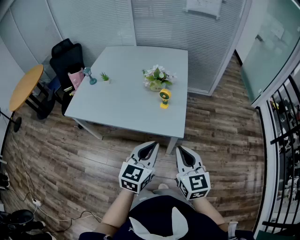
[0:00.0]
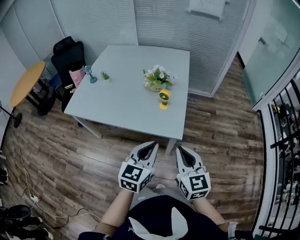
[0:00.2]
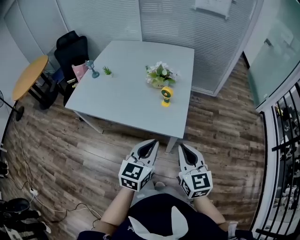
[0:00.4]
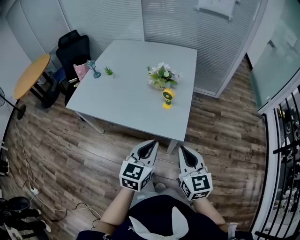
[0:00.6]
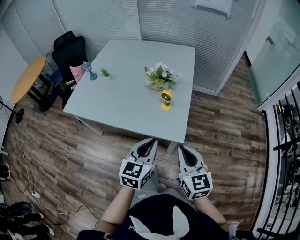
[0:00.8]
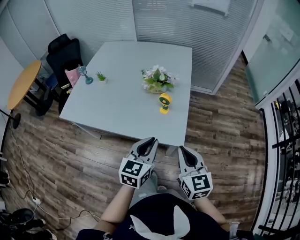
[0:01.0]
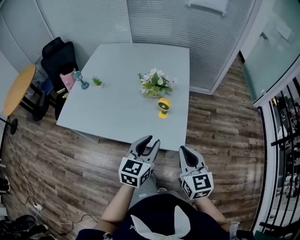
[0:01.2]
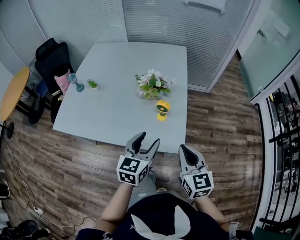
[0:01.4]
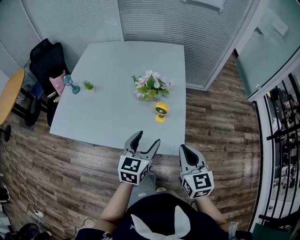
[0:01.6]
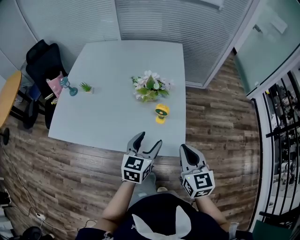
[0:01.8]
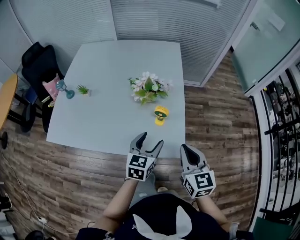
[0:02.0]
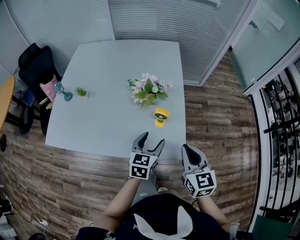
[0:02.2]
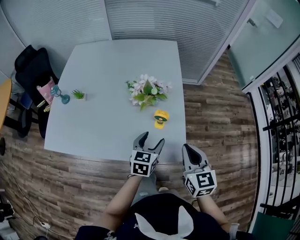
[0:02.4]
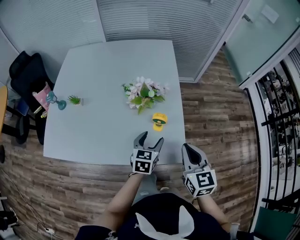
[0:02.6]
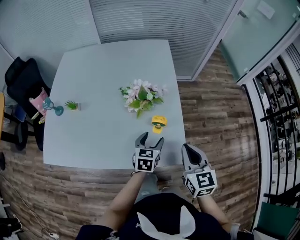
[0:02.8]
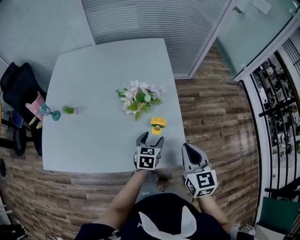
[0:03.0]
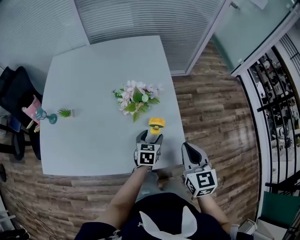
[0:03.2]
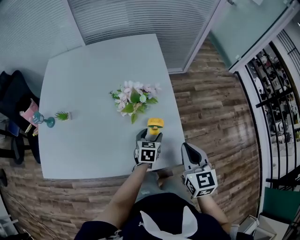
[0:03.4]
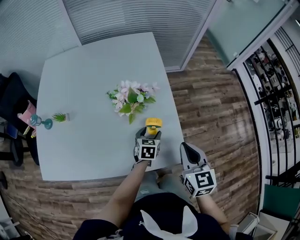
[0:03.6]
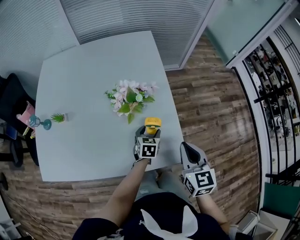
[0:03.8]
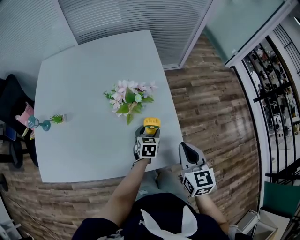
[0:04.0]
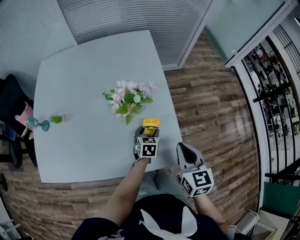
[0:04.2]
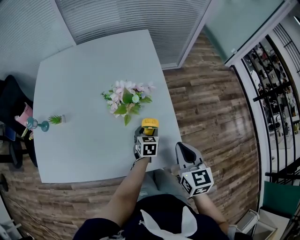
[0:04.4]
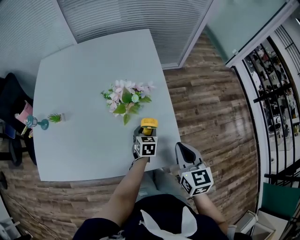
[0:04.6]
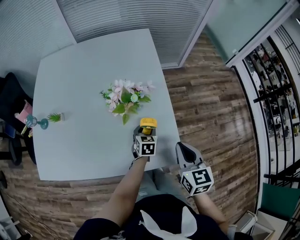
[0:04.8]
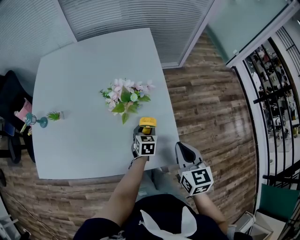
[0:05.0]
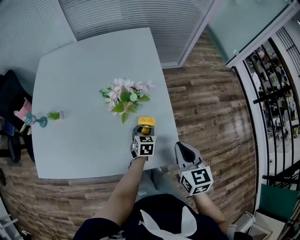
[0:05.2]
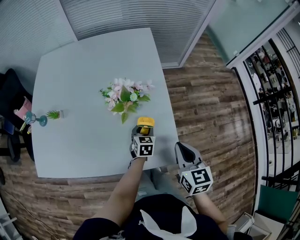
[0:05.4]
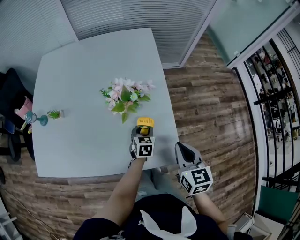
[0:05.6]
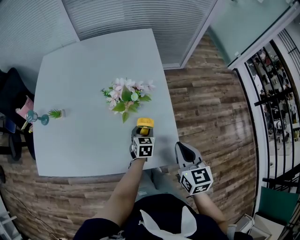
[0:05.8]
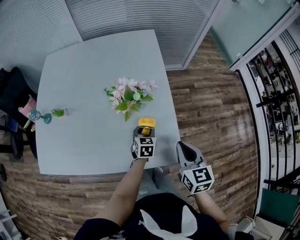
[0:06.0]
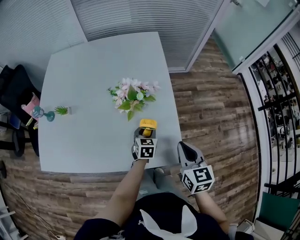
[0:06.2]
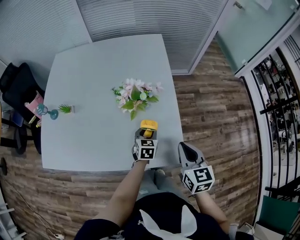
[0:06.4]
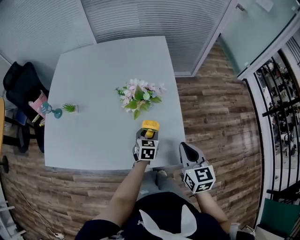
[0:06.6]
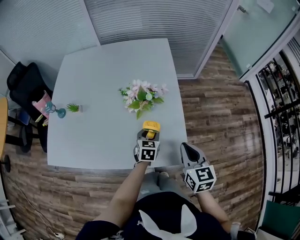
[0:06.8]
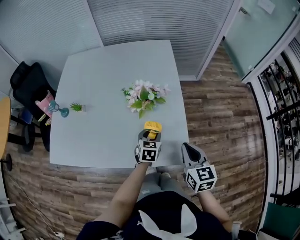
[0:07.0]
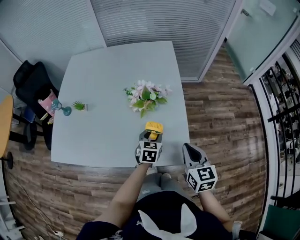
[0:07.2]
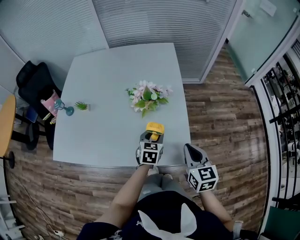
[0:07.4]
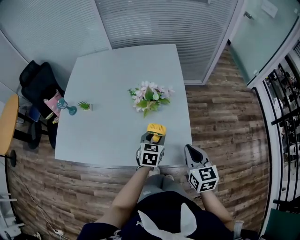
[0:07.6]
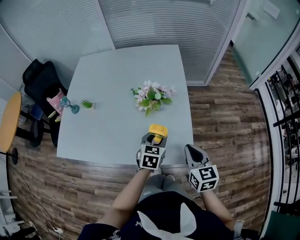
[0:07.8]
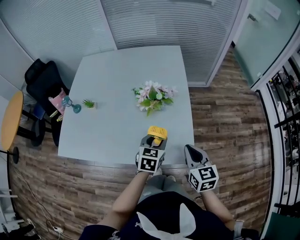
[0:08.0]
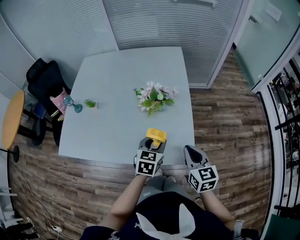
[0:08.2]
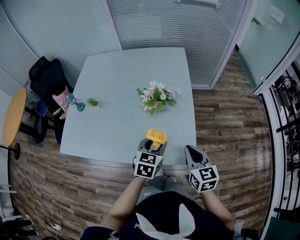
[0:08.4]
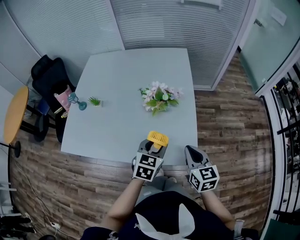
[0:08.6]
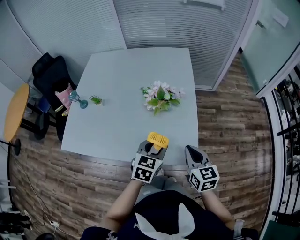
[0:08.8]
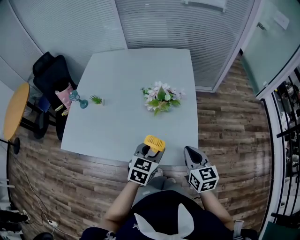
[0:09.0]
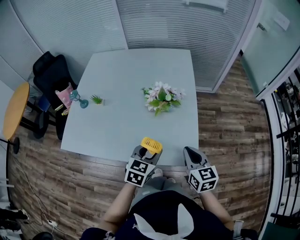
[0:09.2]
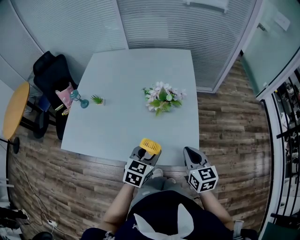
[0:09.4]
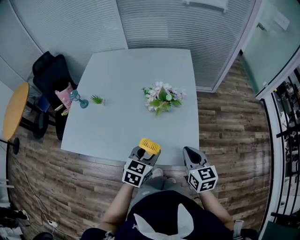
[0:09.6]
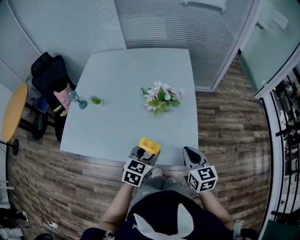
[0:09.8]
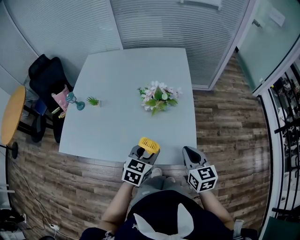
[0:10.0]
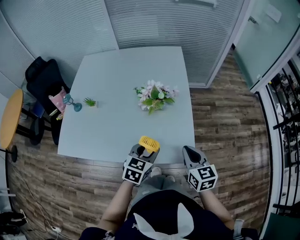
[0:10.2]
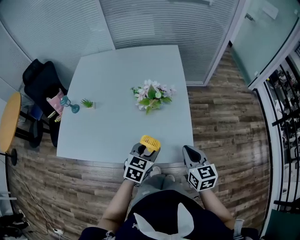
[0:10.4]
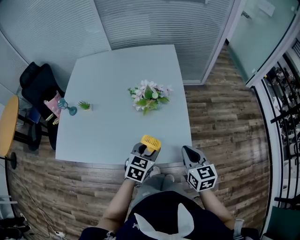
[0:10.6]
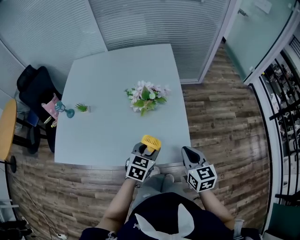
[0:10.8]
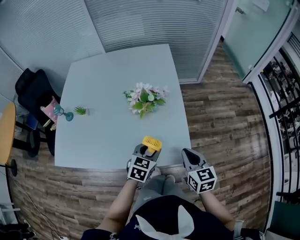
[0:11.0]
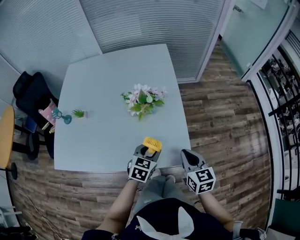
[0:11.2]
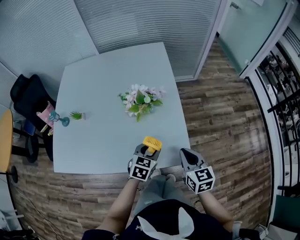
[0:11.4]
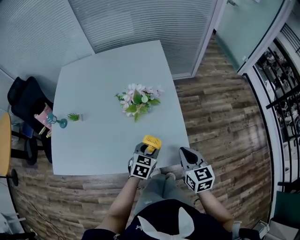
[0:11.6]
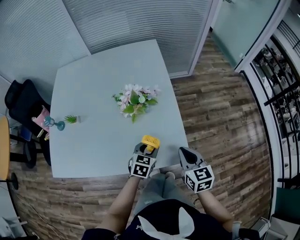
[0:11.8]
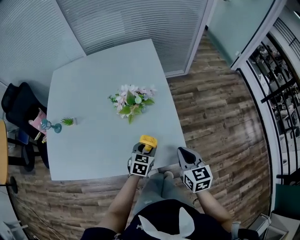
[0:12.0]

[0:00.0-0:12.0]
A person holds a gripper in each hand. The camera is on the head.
0:00.0 to 0:01.6: The two grippers go some 15 cm forward. The left gripper opens.
0:01.6 to 0:03.0: The left gripper goes roughly 20 cm downward and forward, and swivels about 20 degrees, while the right gripper goes about 10 cm forward.
0:03.0 to 0:04.4: The left gripper travels downward and forward by approximately 10 cm.
0:04.4 to 0:06.0: The grippers stay close to where they were, moving slightly.
0:06.0 to 0:07.6: The left gripper heads upward and backward, covering some 10 cm.
0:07.6 to 0:09.0: The left gripper goes approximately 10 cm backward and upward.
0:09.0 to 0:10.4: The grippers stay close to where they were, moving slightly.
0:10.4 to 0:12.0: The left gripper is displaced downward and forward by approximately 15 cm.

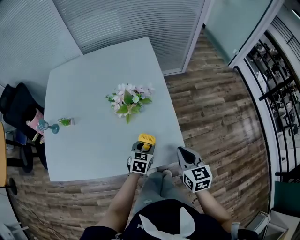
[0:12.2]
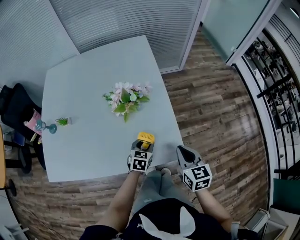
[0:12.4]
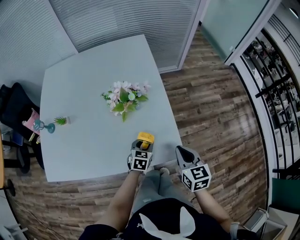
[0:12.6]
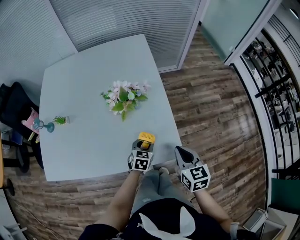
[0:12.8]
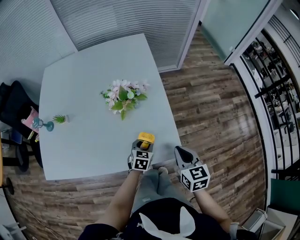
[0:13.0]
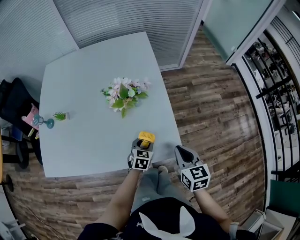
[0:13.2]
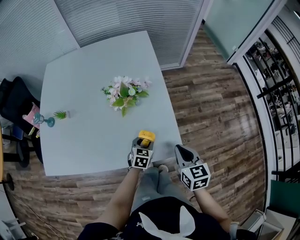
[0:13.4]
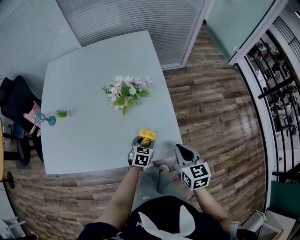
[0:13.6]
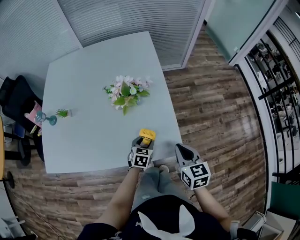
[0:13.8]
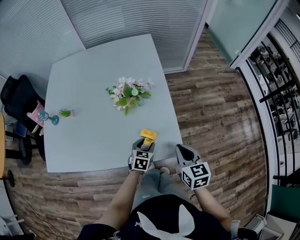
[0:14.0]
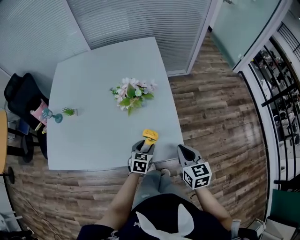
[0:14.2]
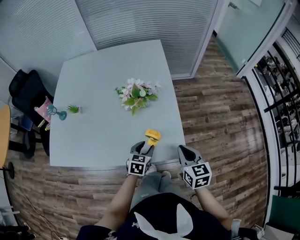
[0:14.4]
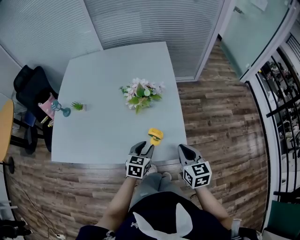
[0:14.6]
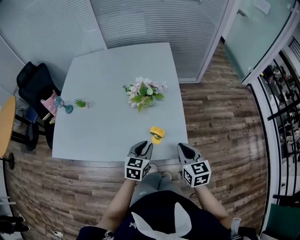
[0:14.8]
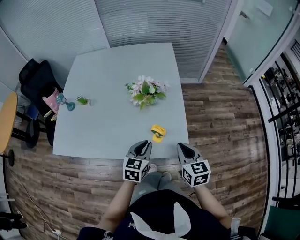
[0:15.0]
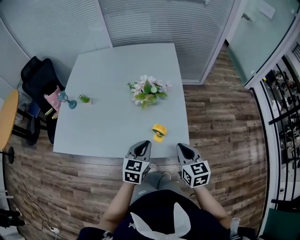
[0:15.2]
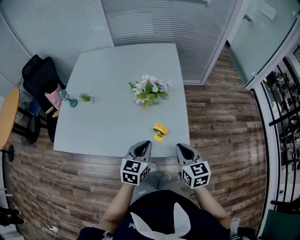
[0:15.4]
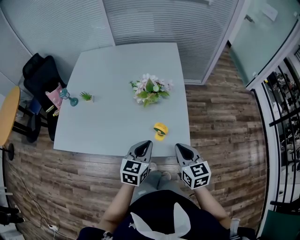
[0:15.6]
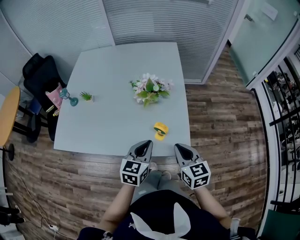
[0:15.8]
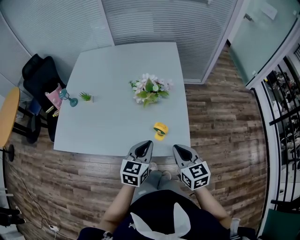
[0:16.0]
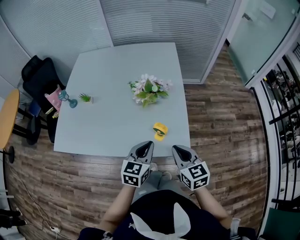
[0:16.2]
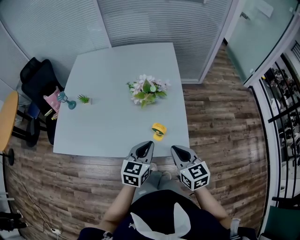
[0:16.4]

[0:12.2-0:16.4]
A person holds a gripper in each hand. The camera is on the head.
0:12.2 to 0:13.6: The grippers stay close to where they were, moving slightly.
0:13.6 to 0:15.0: The left gripper shifts approximately 15 cm upward and backward, and closes.
0:15.0 to 0:16.4: The right gripper moves roughly 5 cm. Meanwhile the left gripper changes place by approximately 5 cm.

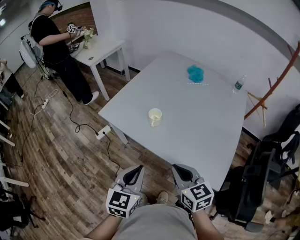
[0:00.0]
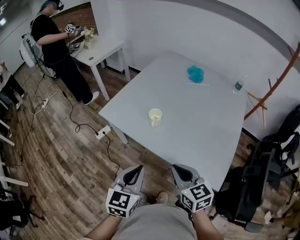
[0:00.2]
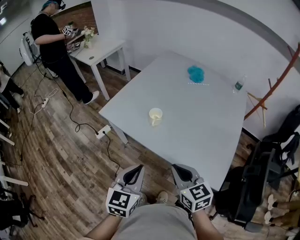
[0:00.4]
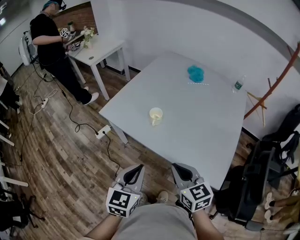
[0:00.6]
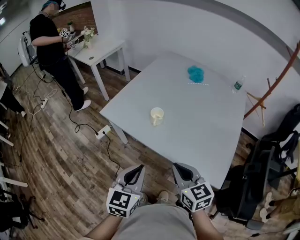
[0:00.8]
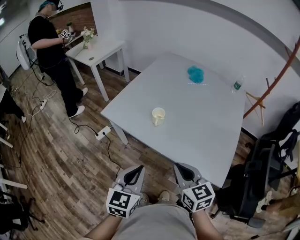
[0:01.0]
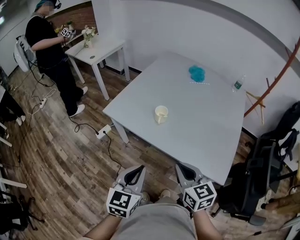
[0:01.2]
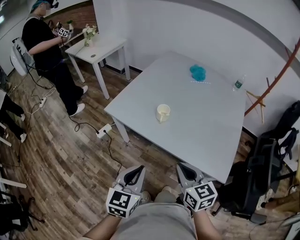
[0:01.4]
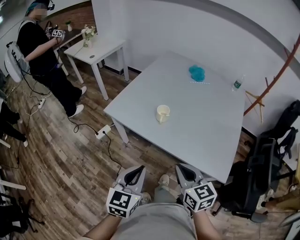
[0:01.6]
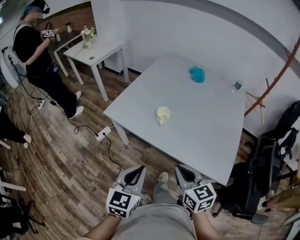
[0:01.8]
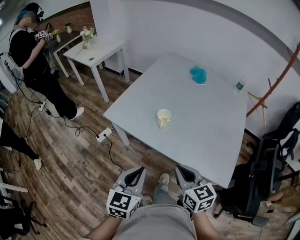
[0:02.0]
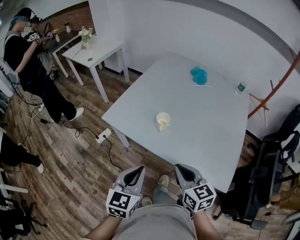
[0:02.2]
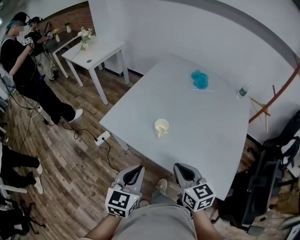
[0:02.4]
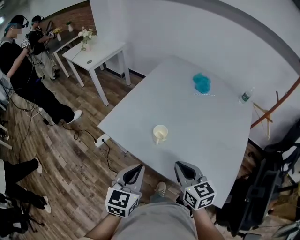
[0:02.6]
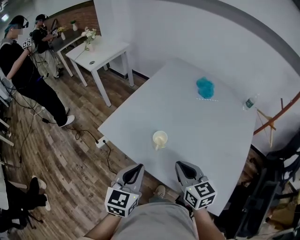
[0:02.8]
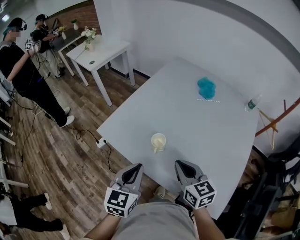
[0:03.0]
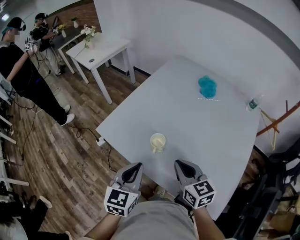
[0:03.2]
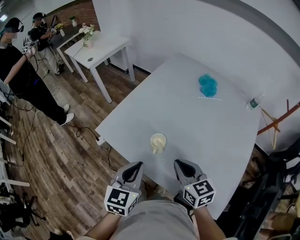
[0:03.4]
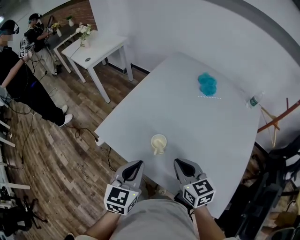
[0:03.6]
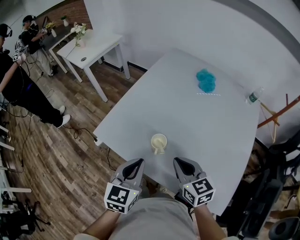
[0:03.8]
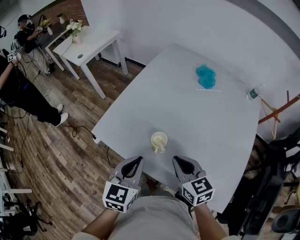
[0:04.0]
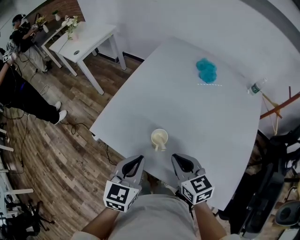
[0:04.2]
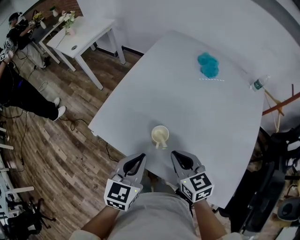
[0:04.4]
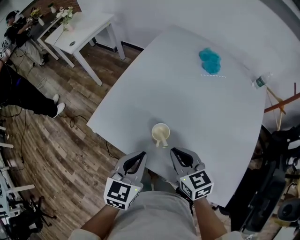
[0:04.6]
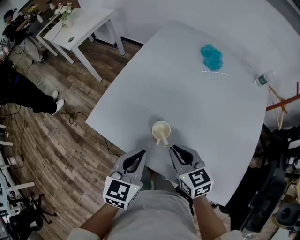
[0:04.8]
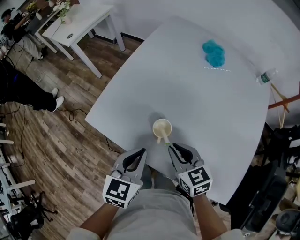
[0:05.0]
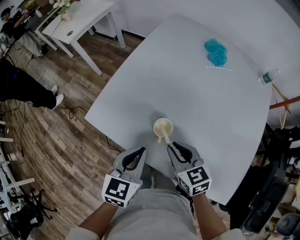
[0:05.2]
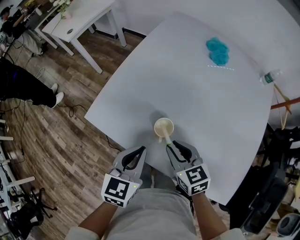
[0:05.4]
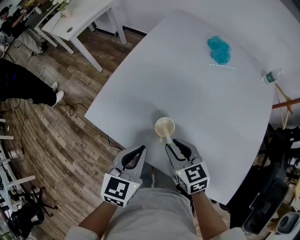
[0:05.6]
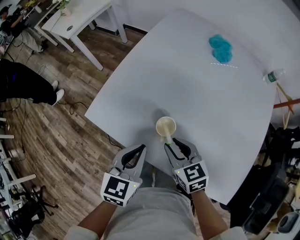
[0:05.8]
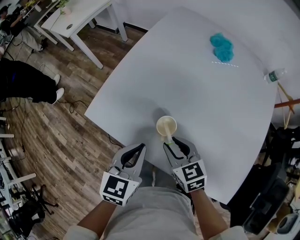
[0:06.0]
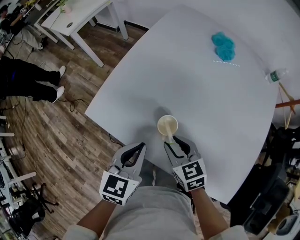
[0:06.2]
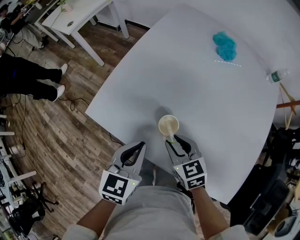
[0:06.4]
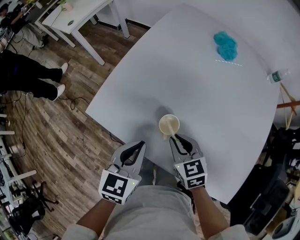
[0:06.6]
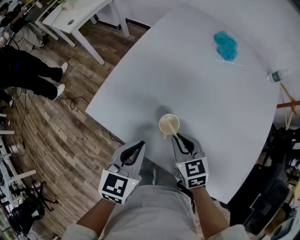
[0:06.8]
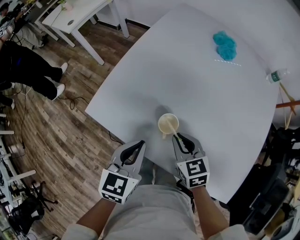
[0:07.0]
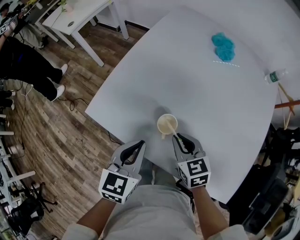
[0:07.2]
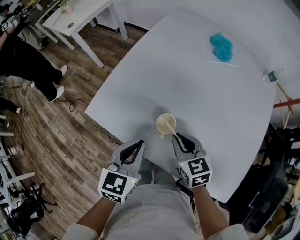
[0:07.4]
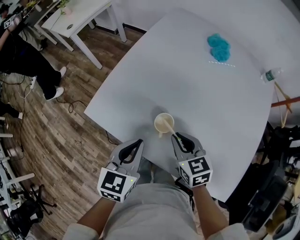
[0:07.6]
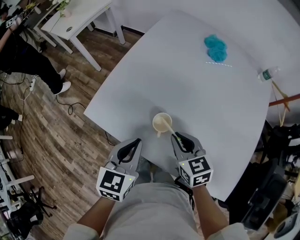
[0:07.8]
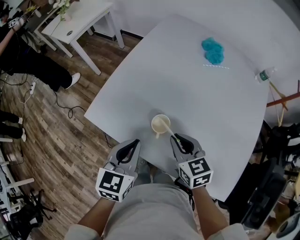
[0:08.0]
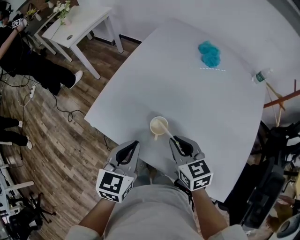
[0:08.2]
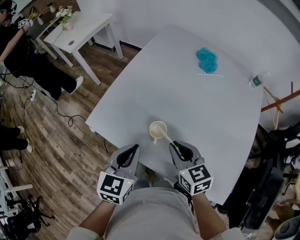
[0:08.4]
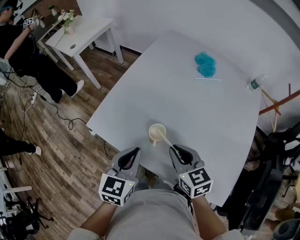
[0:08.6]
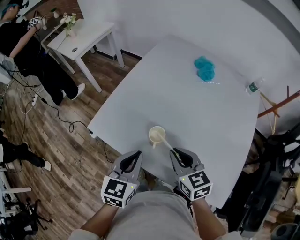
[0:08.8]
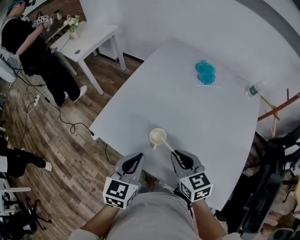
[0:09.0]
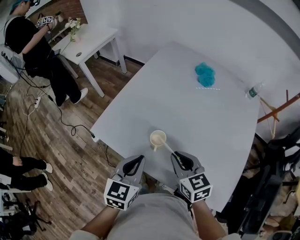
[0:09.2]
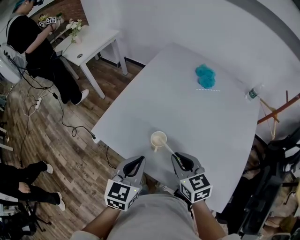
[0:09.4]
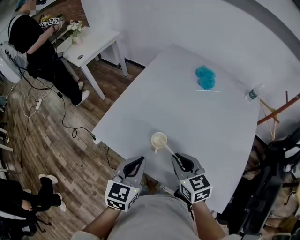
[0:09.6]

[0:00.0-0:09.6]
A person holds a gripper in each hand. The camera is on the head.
0:00.0 to 0:01.6: The two grippers go approximately 5 cm to the left.
0:01.6 to 0:03.2: The grippers both shift forward by approximately 25 cm.
0:03.2 to 0:04.8: The right gripper heads downward and forward, covering some 10 cm, while the left gripper moves forward and downward, some 10 cm.
0:04.8 to 0:06.4: The right gripper goes approximately 5 cm downward, and opens up.
0:06.4 to 0:08.0: The right gripper travels upward by roughly 5 cm.
0:08.0 to 0:09.6: The left gripper ends up about 5 cm from where it was. Meanwhile the right gripper heads upward, covering approximately 5 cm.
